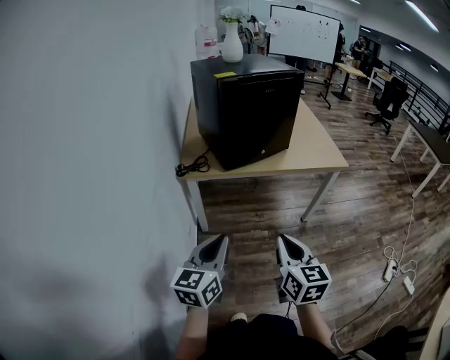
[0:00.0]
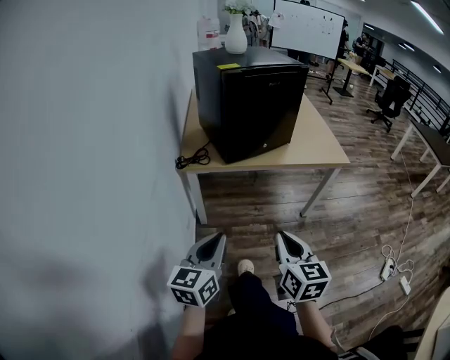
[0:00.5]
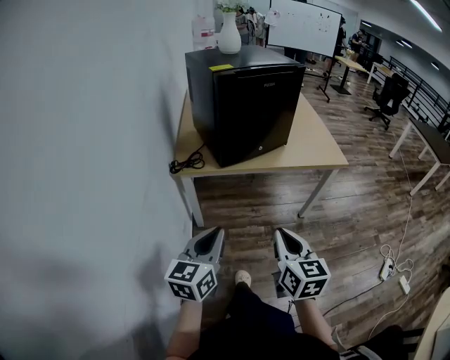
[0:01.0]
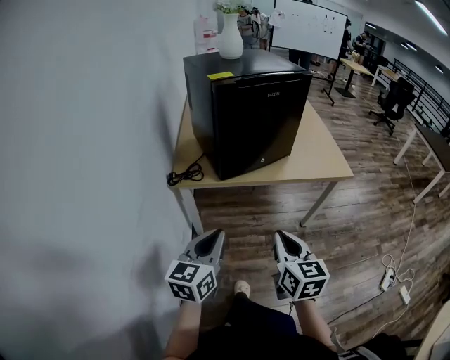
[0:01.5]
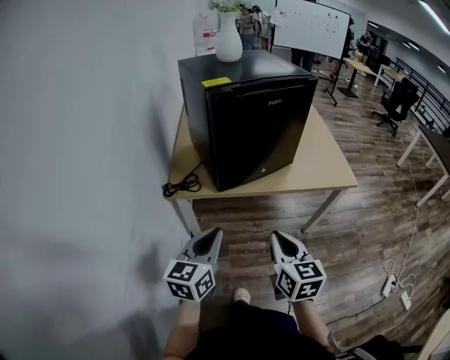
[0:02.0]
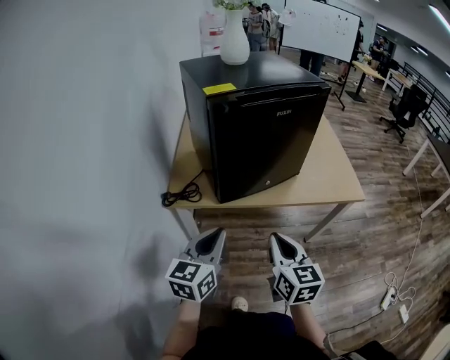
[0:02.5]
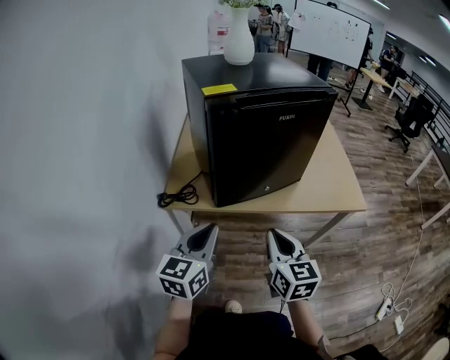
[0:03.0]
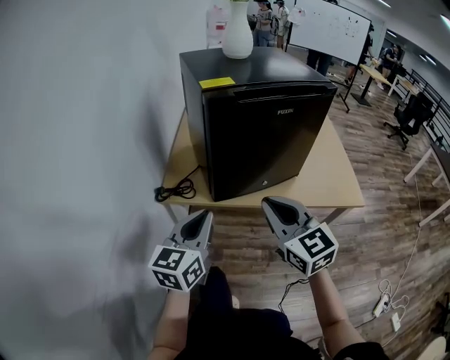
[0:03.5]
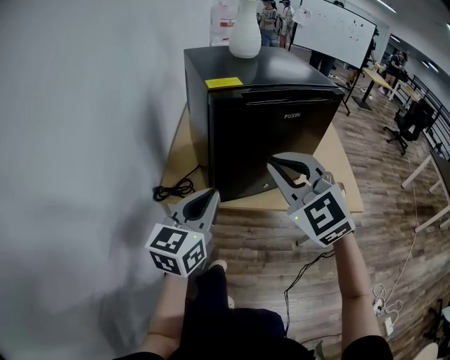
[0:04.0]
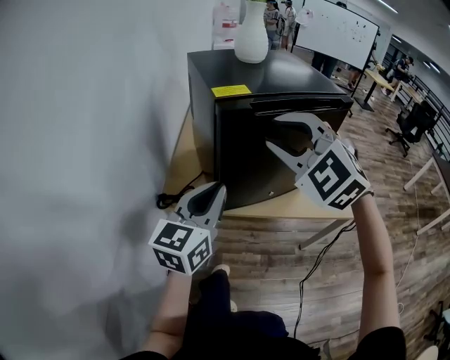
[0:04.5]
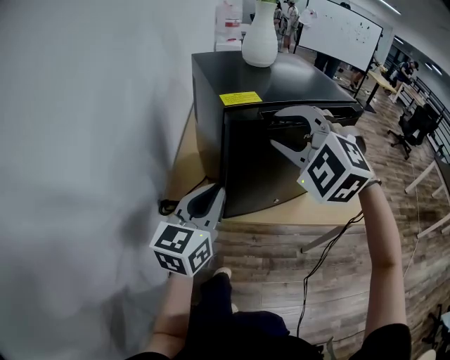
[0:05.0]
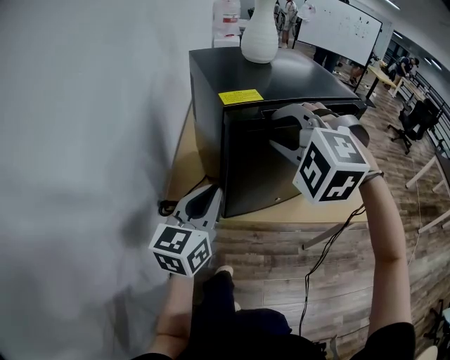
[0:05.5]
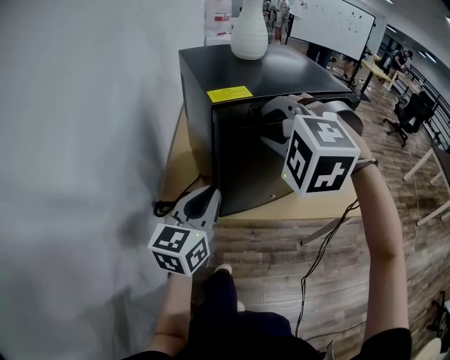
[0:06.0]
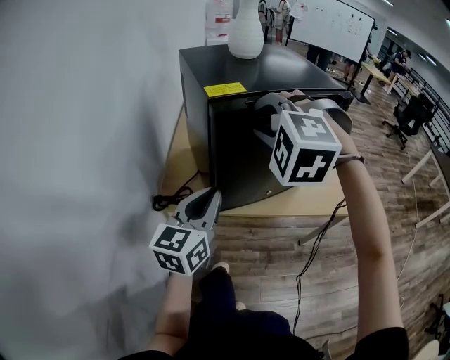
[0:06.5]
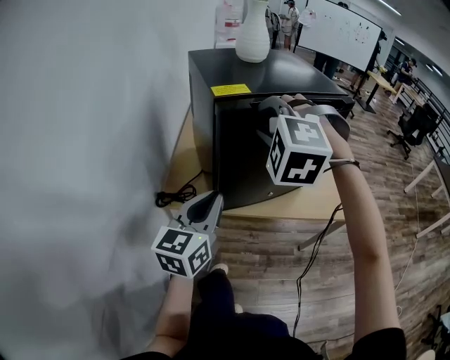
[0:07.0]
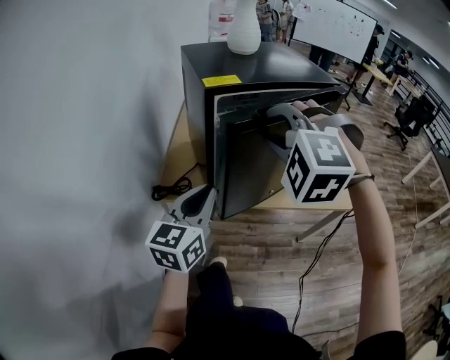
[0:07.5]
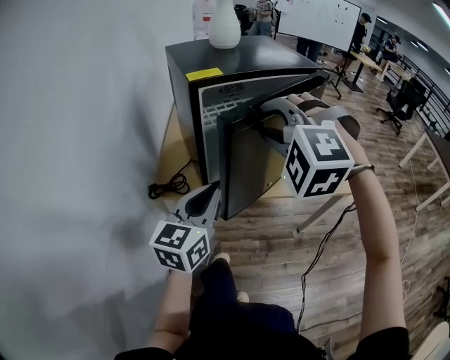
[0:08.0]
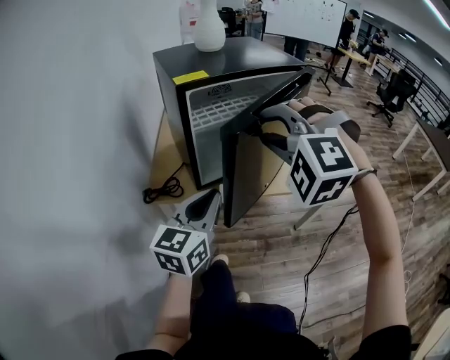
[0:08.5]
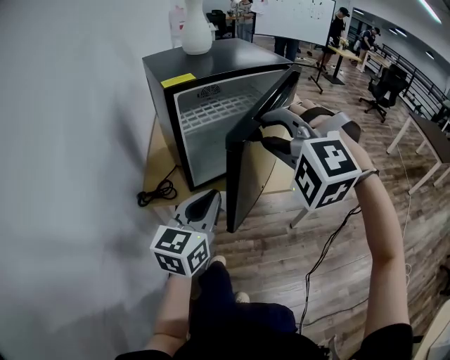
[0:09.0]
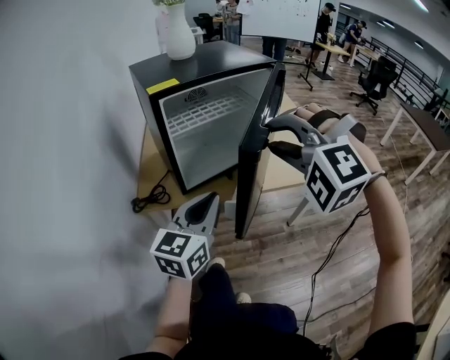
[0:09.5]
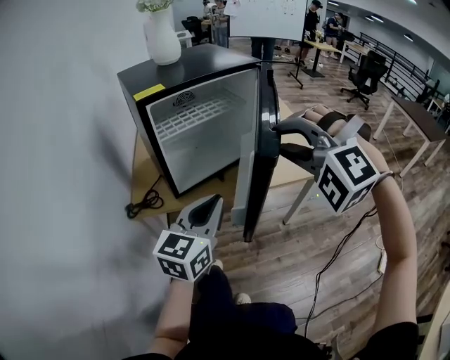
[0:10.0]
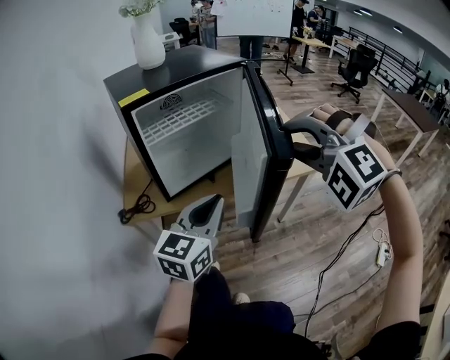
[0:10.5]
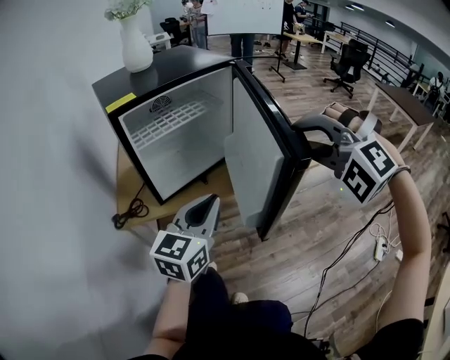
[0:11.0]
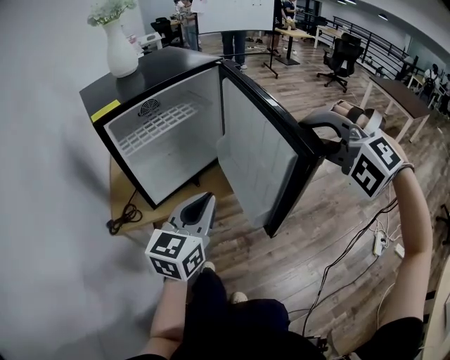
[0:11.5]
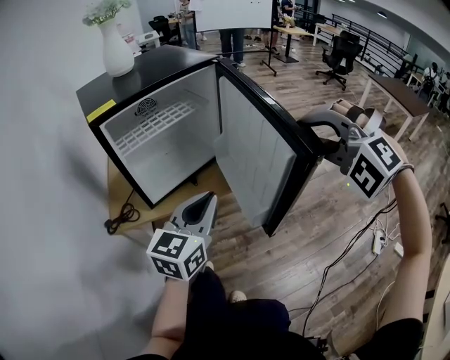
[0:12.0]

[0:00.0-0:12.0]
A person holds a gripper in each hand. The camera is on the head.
0.0 to 2.0 s: The grippers both shift forward by roughly 20 cm.
2.0 to 4.0 s: The left gripper heads forward and upward, covering about 15 cm. Meanwhile the right gripper shifts roughly 25 cm forward and upward, and rolls counterclockwise, seen from behind, by roughly 60 degrees.
4.0 to 6.0 s: Both grippers travel together forward, roughly 10 cm. The right gripper turns by roughly 40 degrees.
6.0 to 8.0 s: Both grippers travel together backward and to the right, about 10 cm.
8.0 to 10.0 s: The right gripper goes about 15 cm to the right and backward, while the left gripper moves to the right, some 10 cm.
10.0 to 12.0 s: The left gripper goes roughly 5 cm to the right; the right gripper travels to the right by roughly 15 cm.

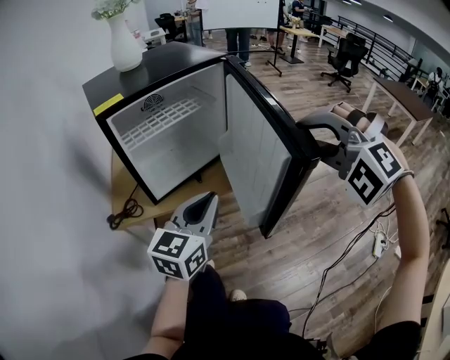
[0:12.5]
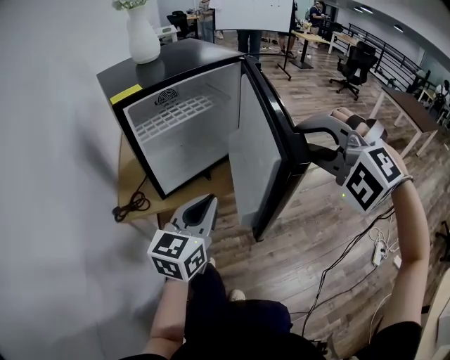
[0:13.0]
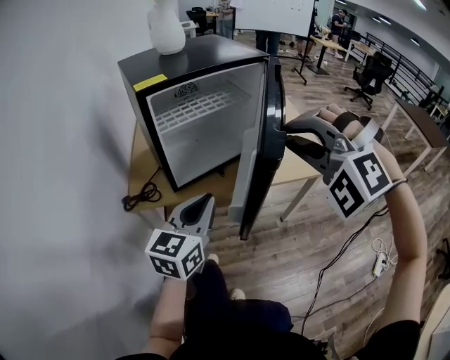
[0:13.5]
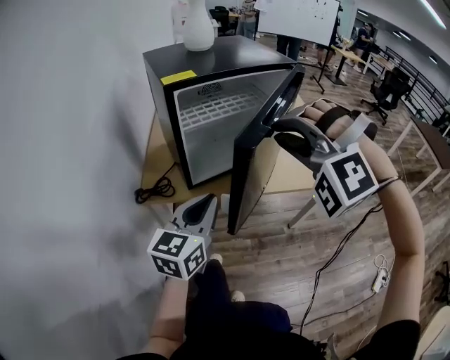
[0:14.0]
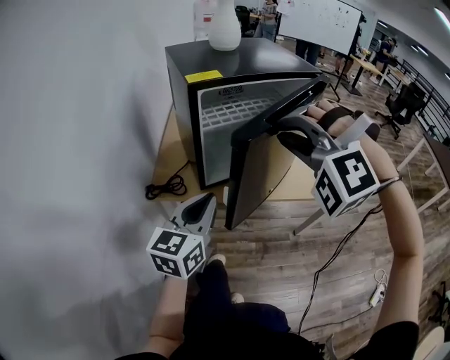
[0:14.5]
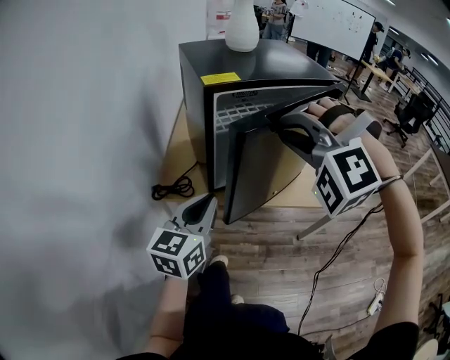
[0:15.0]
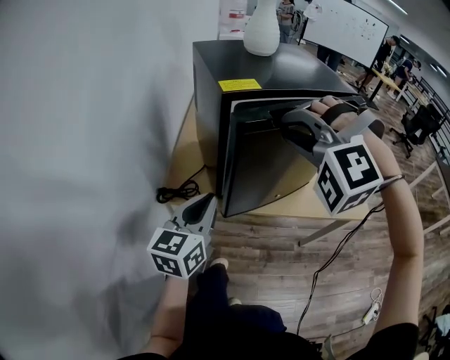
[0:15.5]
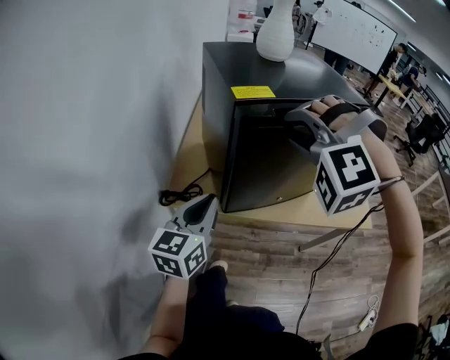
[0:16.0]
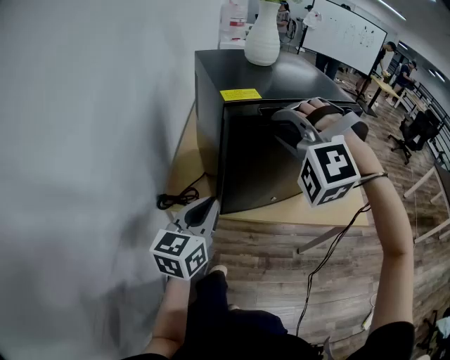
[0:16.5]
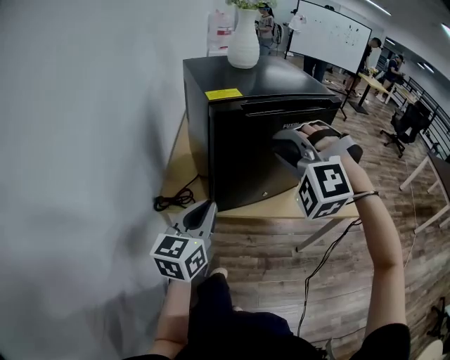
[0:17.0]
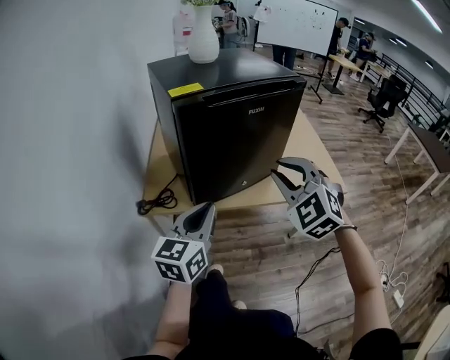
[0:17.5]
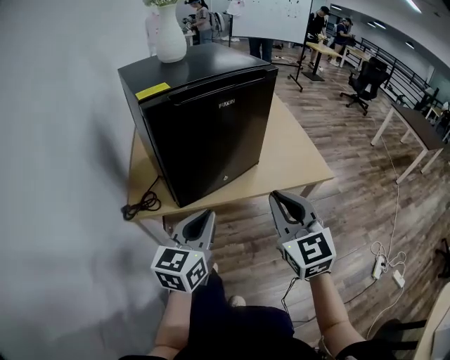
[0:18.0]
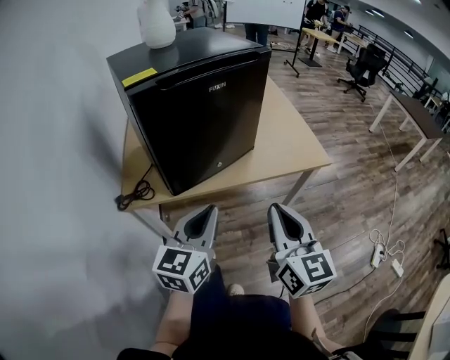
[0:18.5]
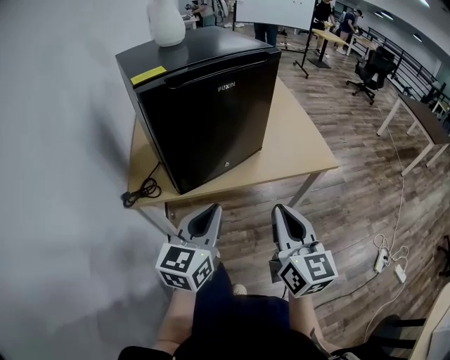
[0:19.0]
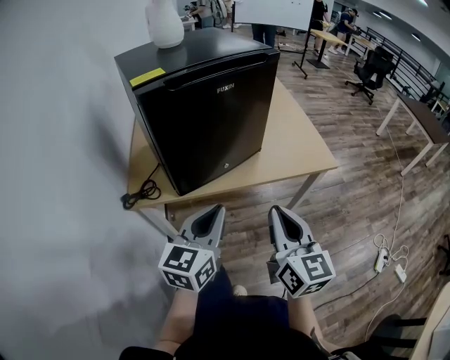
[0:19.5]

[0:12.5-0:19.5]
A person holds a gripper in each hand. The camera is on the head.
12.5 to 14.5 s: Both grippers move to the left, about 20 cm. The left gripper swivels about 20 degrees.
14.5 to 16.0 s: The left gripper is displaced to the left and forward by about 10 cm. Meanwhile the right gripper goes about 10 cm forward and to the left.
16.0 to 17.5 s: The right gripper heads to the right, backward and downward, covering roughly 20 cm, and twists about 60 degrees clockwise, seen from behind. Meanwhile the left gripper travels to the right and backward by about 10 cm.
17.5 to 19.5 s: The right gripper is displaced backward, to the right and downward by some 15 cm, and rotates around the line of its fingers by approximately 60 degrees, clockwise from behind. The left gripper heads to the right, covering approximately 10 cm.

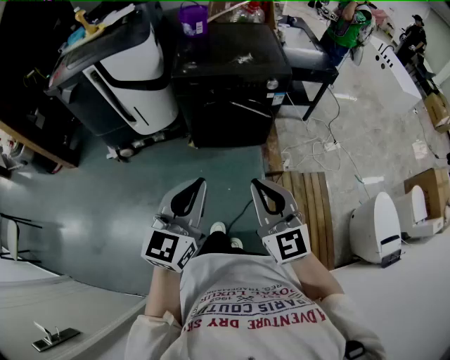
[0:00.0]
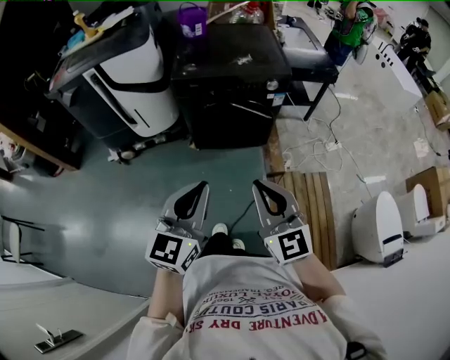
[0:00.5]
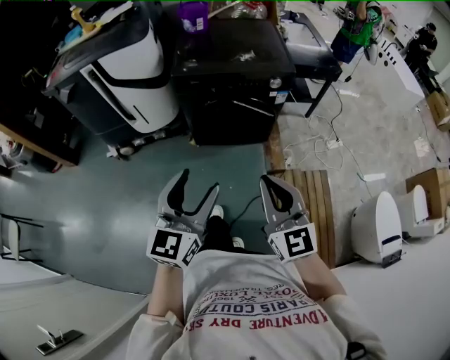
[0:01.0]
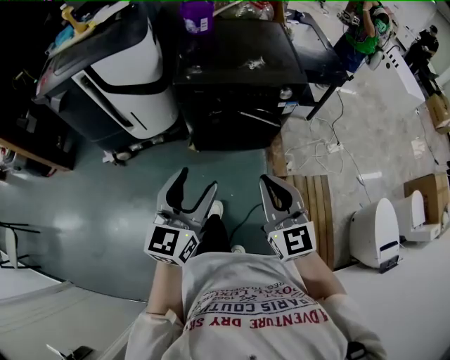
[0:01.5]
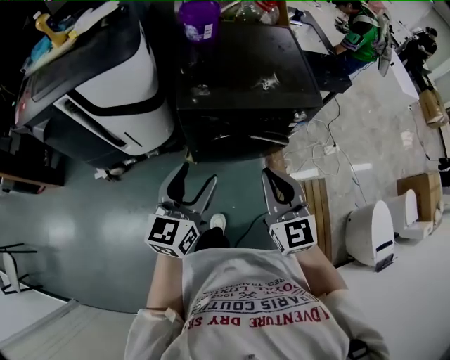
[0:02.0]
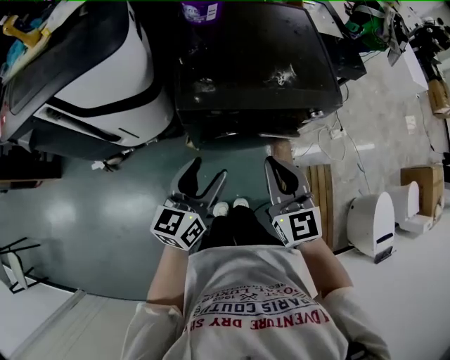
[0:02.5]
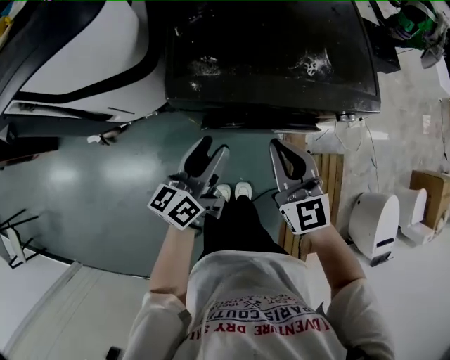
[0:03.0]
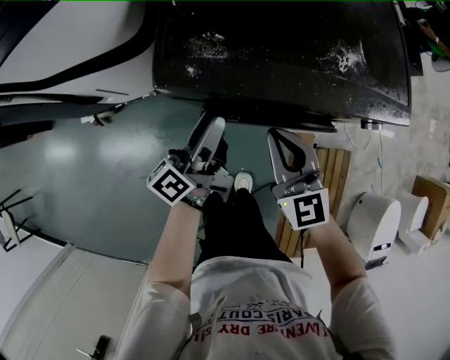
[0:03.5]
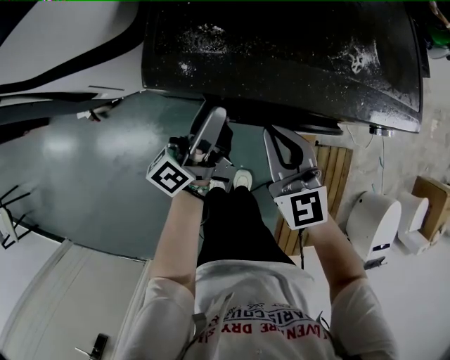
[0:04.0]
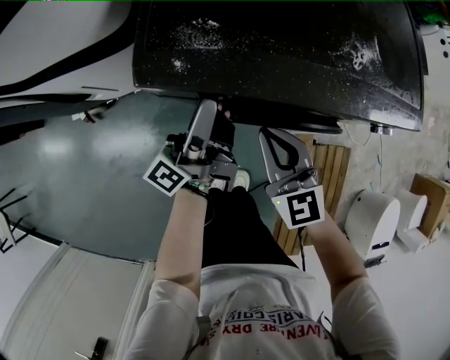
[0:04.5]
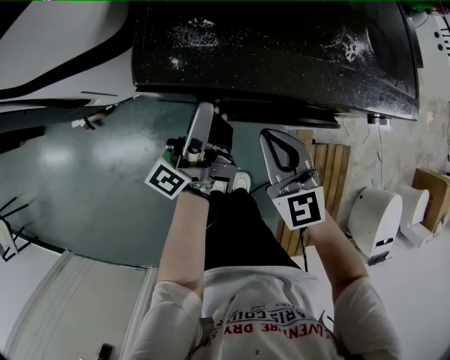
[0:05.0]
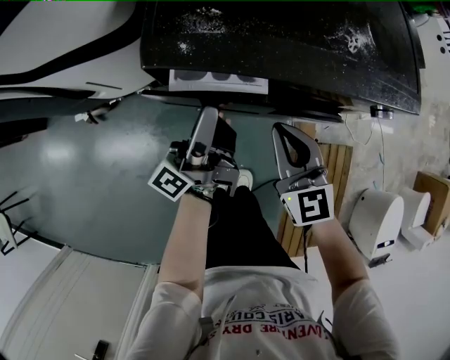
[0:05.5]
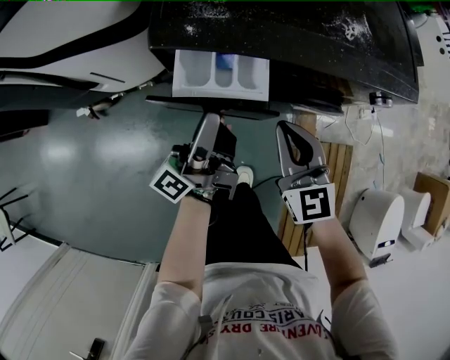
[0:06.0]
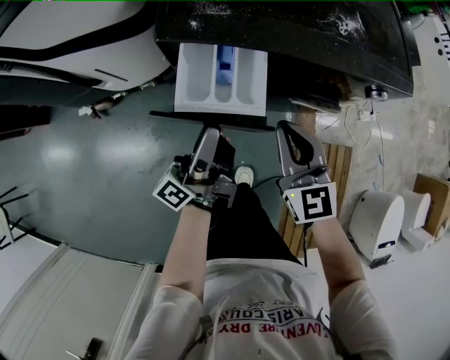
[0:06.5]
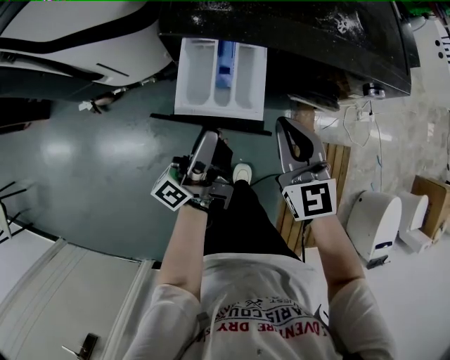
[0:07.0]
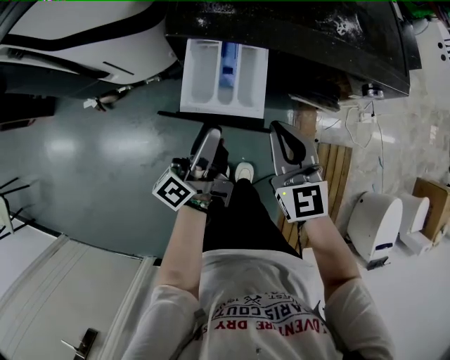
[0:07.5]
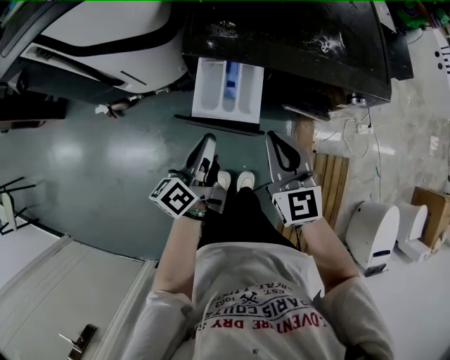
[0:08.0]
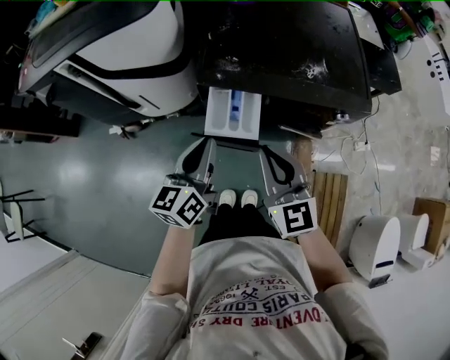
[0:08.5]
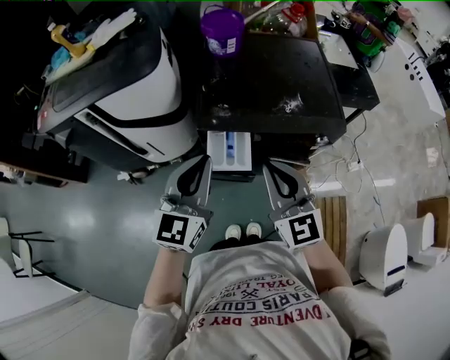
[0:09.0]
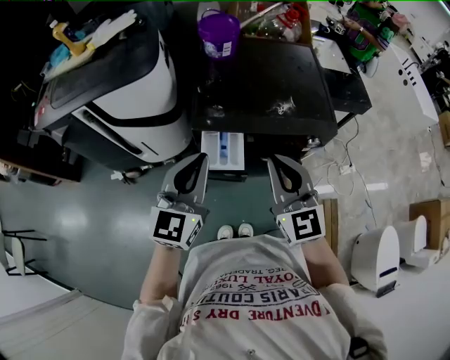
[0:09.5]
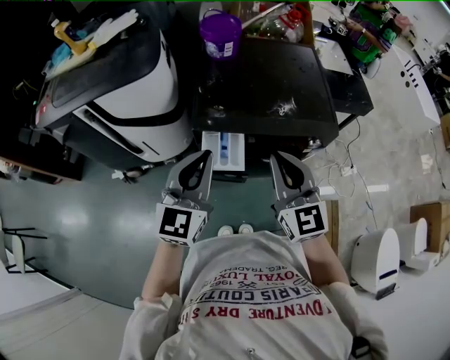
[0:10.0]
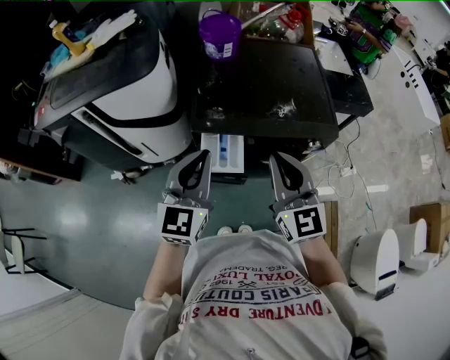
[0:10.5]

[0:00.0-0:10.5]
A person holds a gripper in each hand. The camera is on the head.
0.0 to 2.0 s: The two grippers go about 30 cm forward. The left gripper opens its fingers.
2.0 to 4.0 s: The grippers both shift downward and forward by some 35 cm. The left gripper rolls counterclockwise, seen from behind, by some 60 degrees.
4.0 to 6.5 s: The grippers both shift backward by approximately 10 cm.
6.5 to 8.5 s: The grippers both shift upward by some 15 cm. The left gripper twists some 50 degrees clockwise, seen from behind, and closes up.
8.5 to 10.5 s: The right gripper goes approximately 15 cm upward and to the right; the left gripper moves upward, roughly 15 cm, and swivels roughly 30 degrees.
